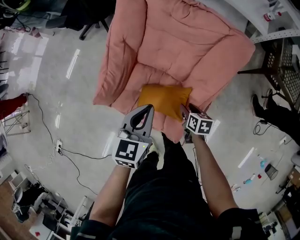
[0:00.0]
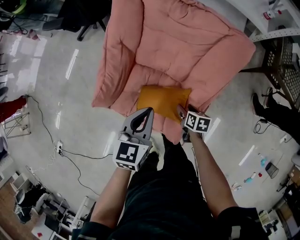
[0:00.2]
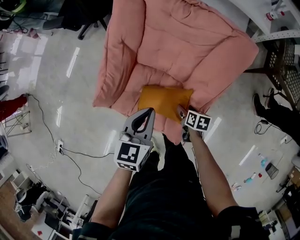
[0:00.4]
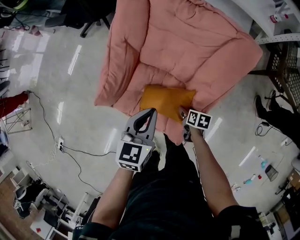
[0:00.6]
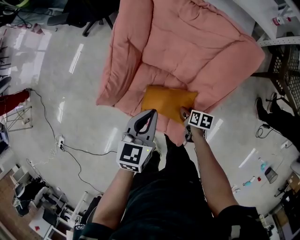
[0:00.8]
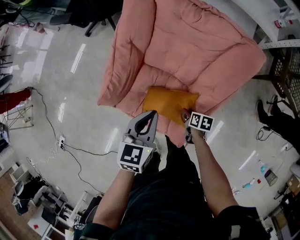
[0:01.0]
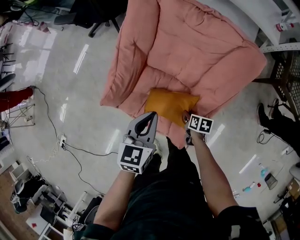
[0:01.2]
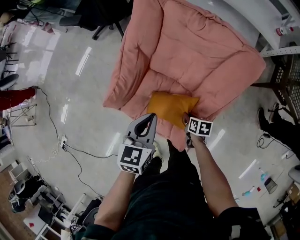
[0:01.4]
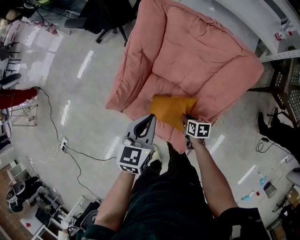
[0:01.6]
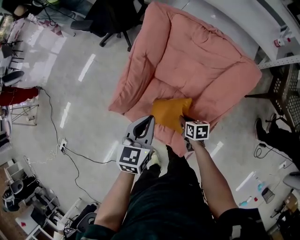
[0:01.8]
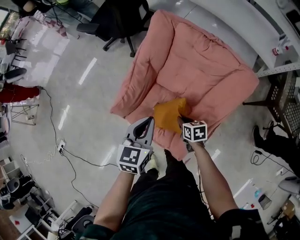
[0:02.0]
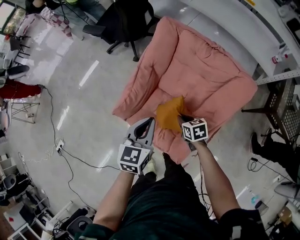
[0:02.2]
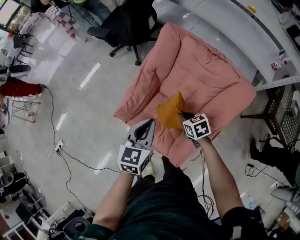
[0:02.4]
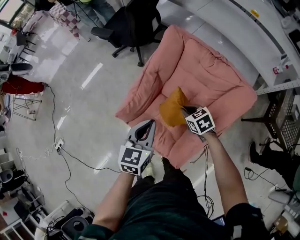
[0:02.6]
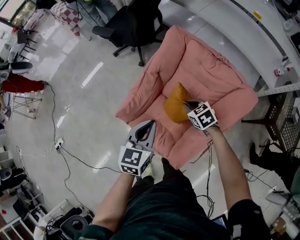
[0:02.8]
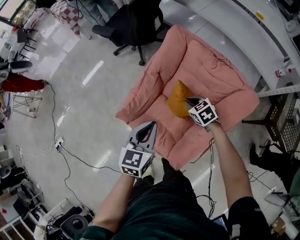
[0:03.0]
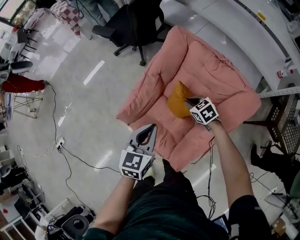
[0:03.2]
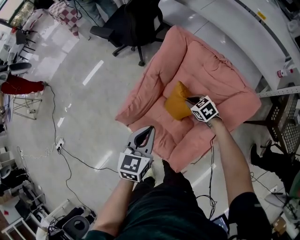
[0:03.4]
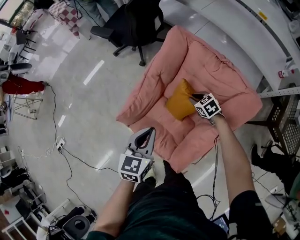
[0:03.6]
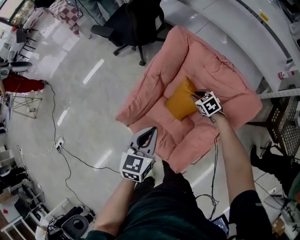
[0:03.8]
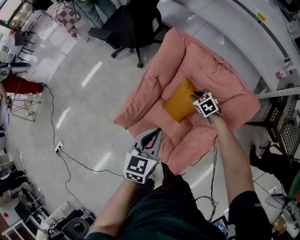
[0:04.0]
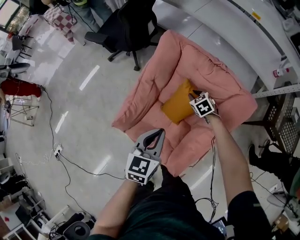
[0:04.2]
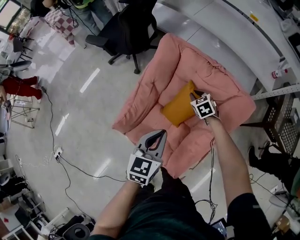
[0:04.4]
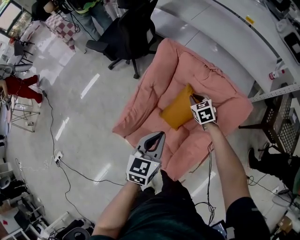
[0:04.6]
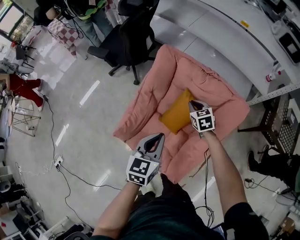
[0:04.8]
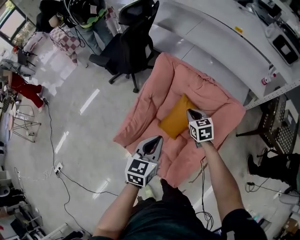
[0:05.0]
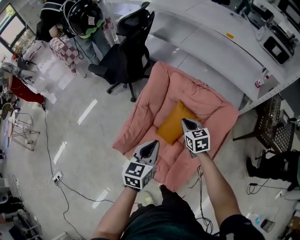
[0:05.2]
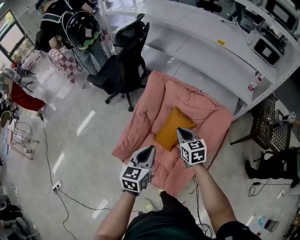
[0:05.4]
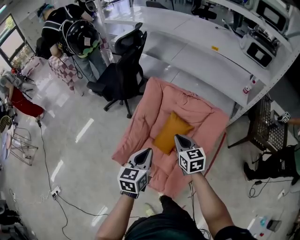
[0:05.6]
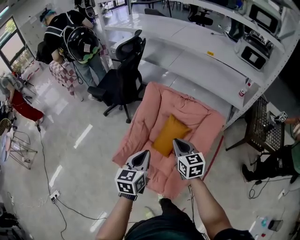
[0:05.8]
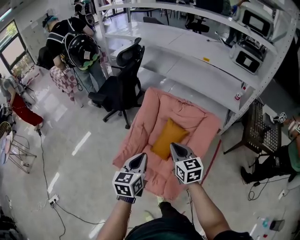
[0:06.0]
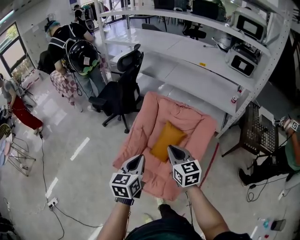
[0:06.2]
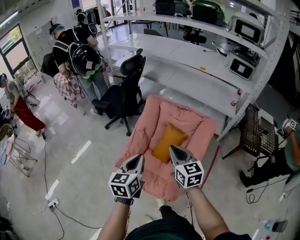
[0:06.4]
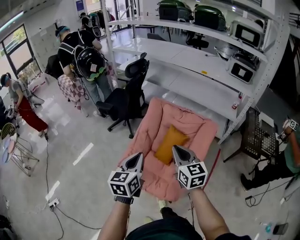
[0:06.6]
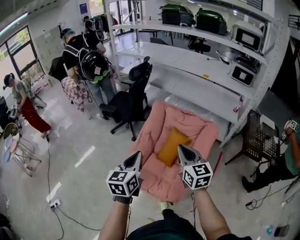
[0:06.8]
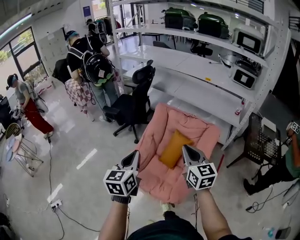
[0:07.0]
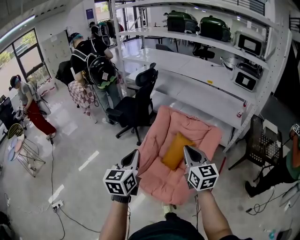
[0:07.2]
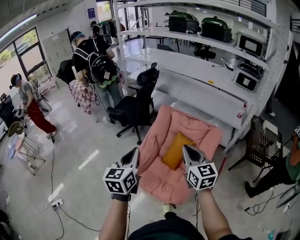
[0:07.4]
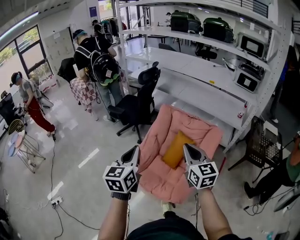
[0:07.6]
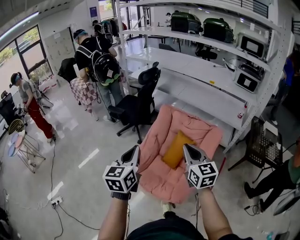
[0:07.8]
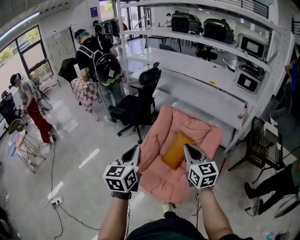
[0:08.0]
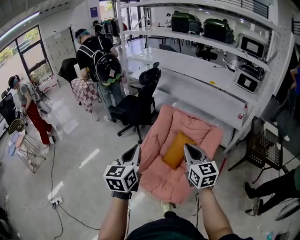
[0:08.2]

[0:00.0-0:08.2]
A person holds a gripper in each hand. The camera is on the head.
0:00.0 to 0:01.6: The right gripper heads to the left, covering about 5 cm, reaches roughly 10 cm downward, then returns, and closes.
0:01.6 to 0:03.2: The left gripper moves upward, some 5 cm. Meanwhile the right gripper goes some 25 cm forward and upward, and twists some 50 degrees counterclockwise, seen from behind.
0:03.2 to 0:05.0: The right gripper is displaced upward and to the right by approximately 10 cm, and rotates roughly 30 degrees, while the left gripper is displaced to the right by roughly 5 cm.
0:05.0 to 0:06.6: The right gripper shifts roughly 40 cm upward and backward, and rotates roughly 30 degrees. Meanwhile the left gripper shifts roughly 25 cm upward, backward and to the left.
0:06.6 to 0:08.2: The right gripper travels upward by approximately 5 cm; the left gripper goes approximately 10 cm upward and to the left.

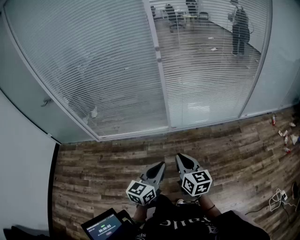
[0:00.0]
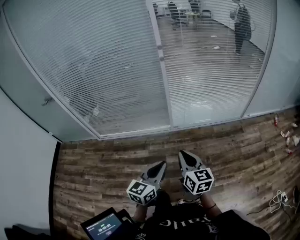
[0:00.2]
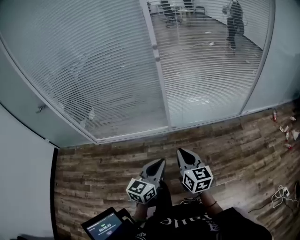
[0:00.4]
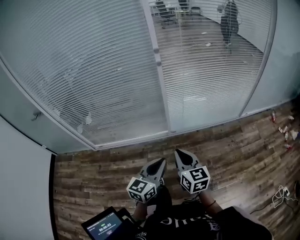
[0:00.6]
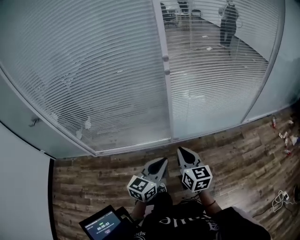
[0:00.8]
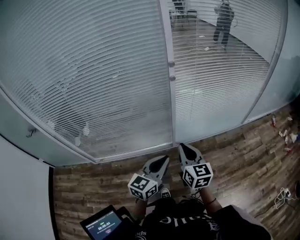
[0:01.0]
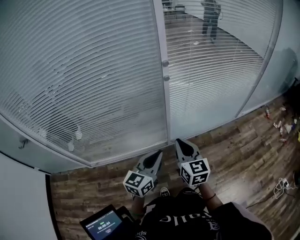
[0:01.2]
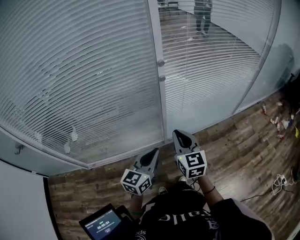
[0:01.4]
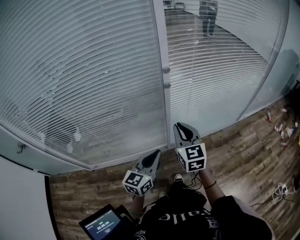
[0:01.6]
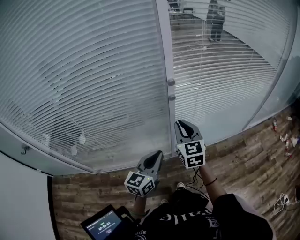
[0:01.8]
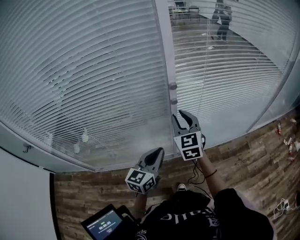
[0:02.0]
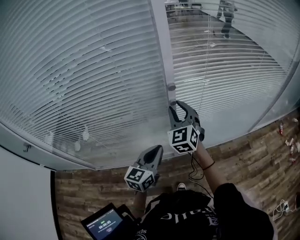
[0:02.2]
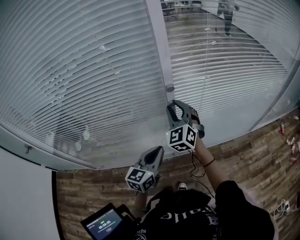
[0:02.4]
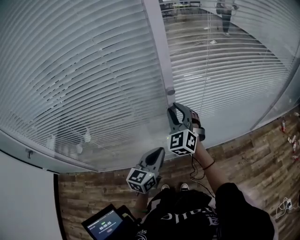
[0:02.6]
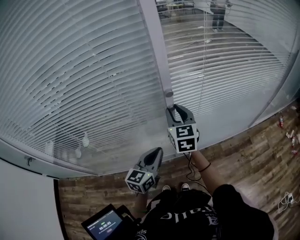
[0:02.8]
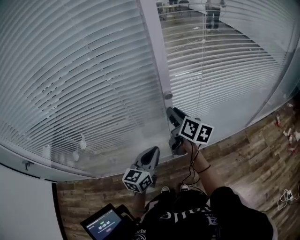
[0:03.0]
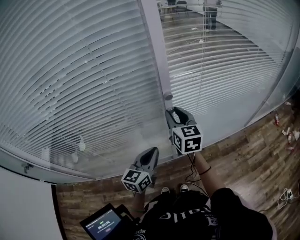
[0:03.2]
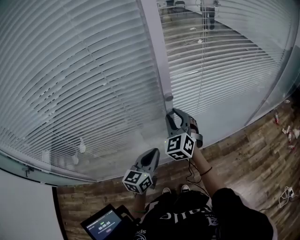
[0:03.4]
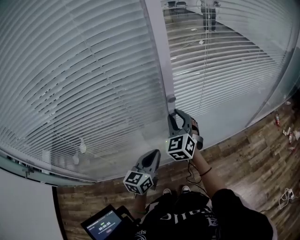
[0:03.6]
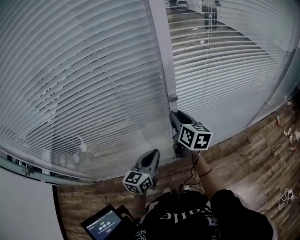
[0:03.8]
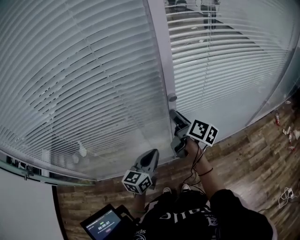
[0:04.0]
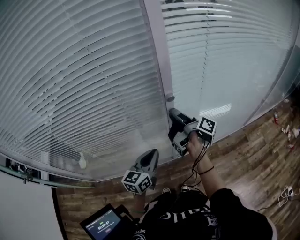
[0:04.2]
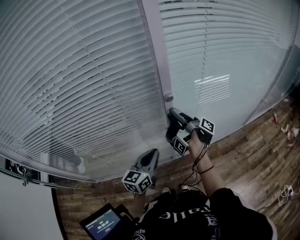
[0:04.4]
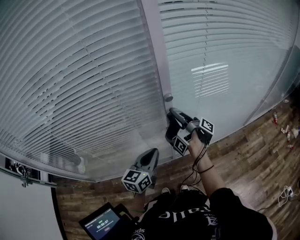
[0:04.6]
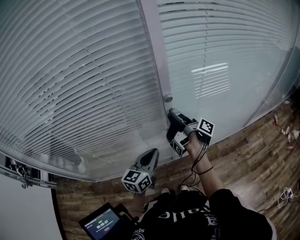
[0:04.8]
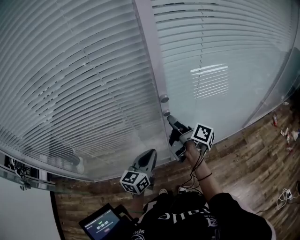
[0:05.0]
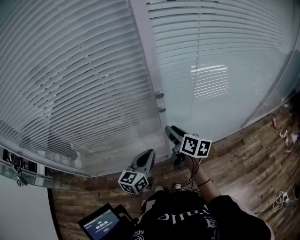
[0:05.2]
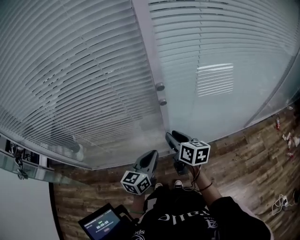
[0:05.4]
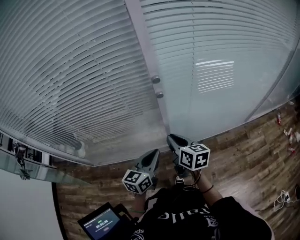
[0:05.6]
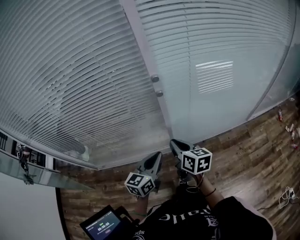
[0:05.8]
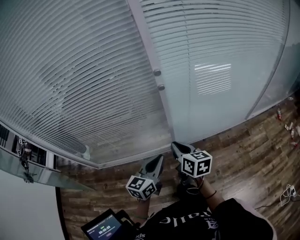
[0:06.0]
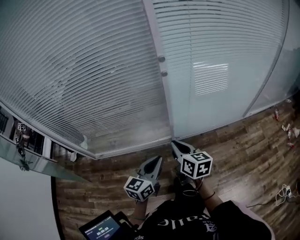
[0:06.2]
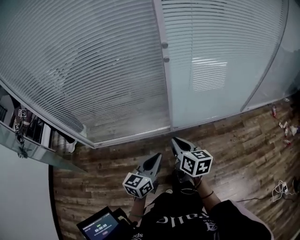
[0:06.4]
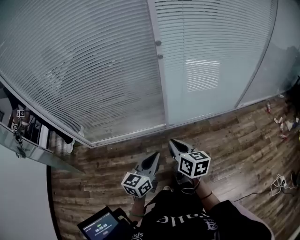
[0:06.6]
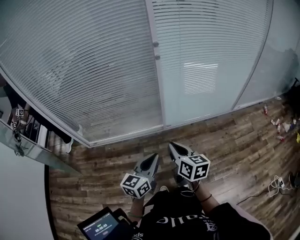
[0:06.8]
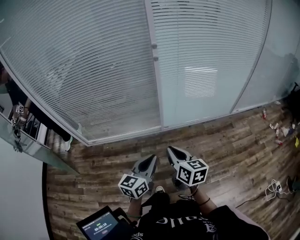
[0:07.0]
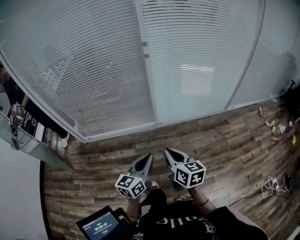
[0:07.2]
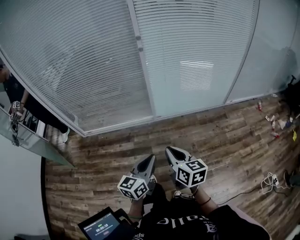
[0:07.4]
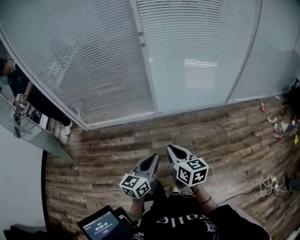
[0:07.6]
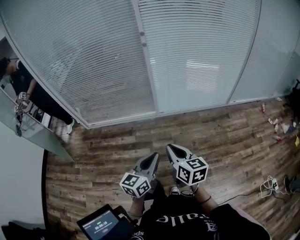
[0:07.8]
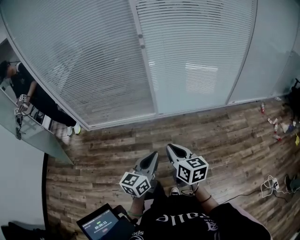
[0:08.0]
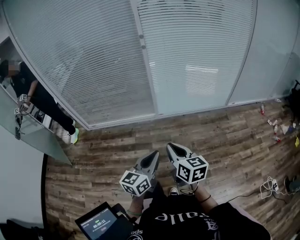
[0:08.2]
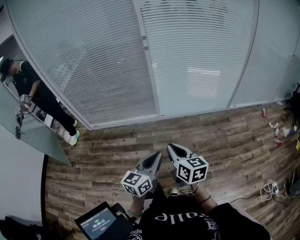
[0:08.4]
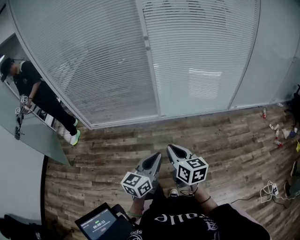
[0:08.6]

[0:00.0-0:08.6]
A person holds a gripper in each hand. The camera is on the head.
0:00.0 to 0:01.4: The pair of grippers is taken forward and to the left, roughly 50 cm. The right gripper turns by about 20 degrees.
0:01.4 to 0:02.8: The grippers both shift forward by some 25 cm. The right gripper opens.
0:02.8 to 0:04.4: The right gripper twists about 110 degrees clockwise, seen from behind.
0:04.4 to 0:05.8: The right gripper moves backward, about 25 cm, rolls counterclockwise, seen from behind, by roughly 80 degrees, and closes up, while the left gripper heads backward and to the right, covering some 15 cm.
0:05.8 to 0:07.2: The two grippers travel together, backward, some 50 cm.
0:07.2 to 0:08.6: The grippers both shift backward and to the right by some 20 cm.

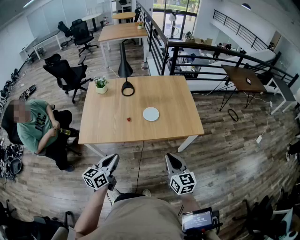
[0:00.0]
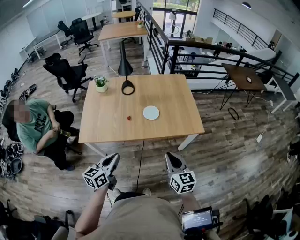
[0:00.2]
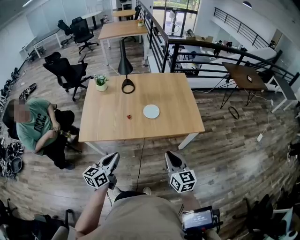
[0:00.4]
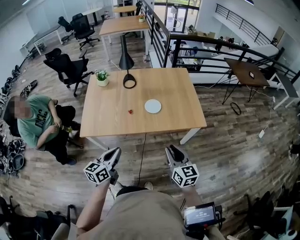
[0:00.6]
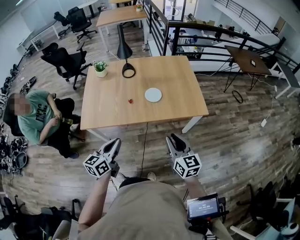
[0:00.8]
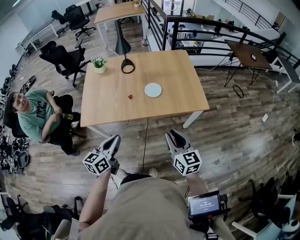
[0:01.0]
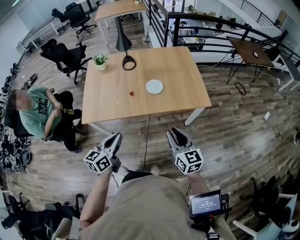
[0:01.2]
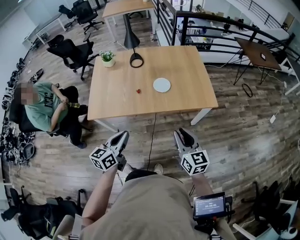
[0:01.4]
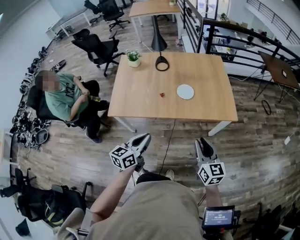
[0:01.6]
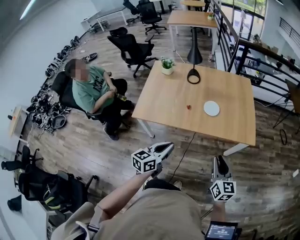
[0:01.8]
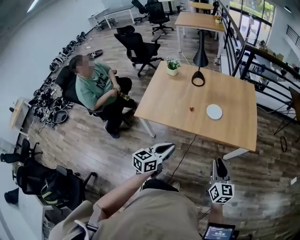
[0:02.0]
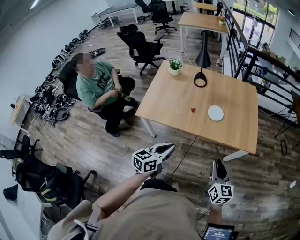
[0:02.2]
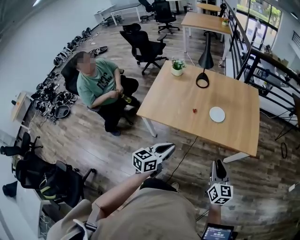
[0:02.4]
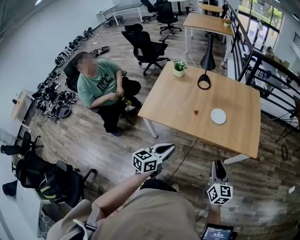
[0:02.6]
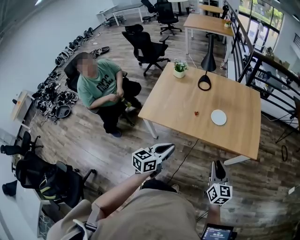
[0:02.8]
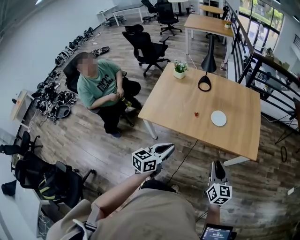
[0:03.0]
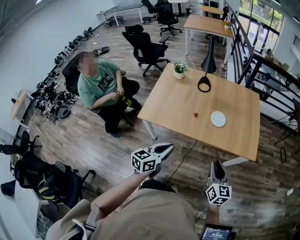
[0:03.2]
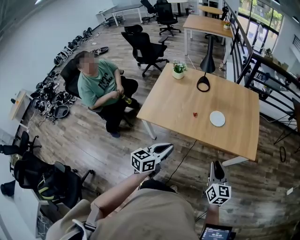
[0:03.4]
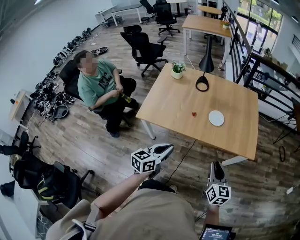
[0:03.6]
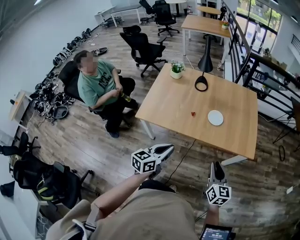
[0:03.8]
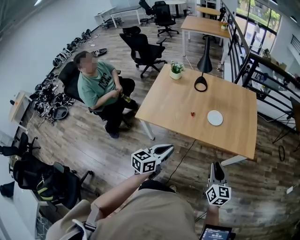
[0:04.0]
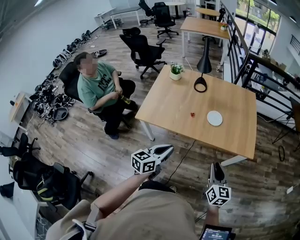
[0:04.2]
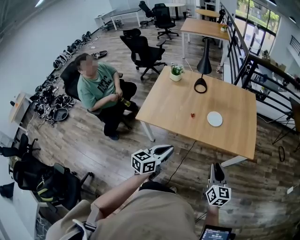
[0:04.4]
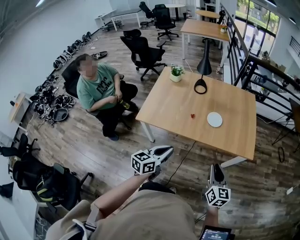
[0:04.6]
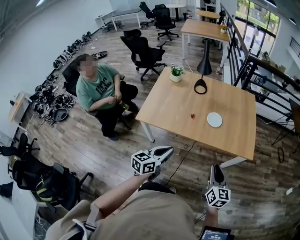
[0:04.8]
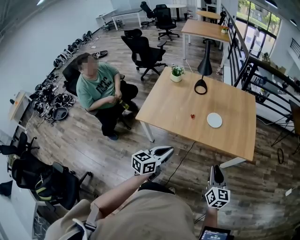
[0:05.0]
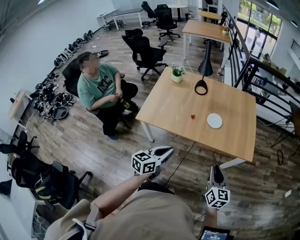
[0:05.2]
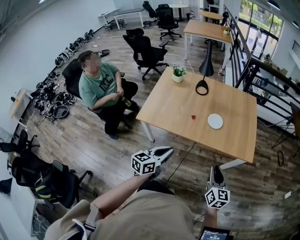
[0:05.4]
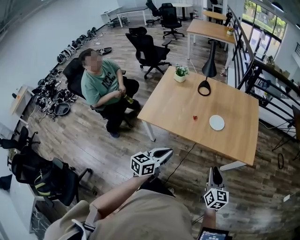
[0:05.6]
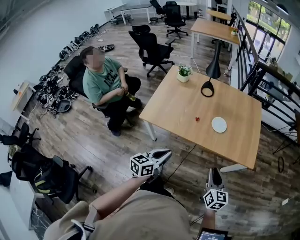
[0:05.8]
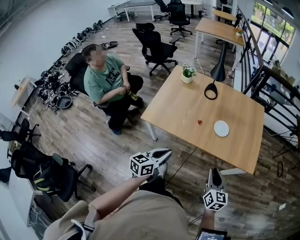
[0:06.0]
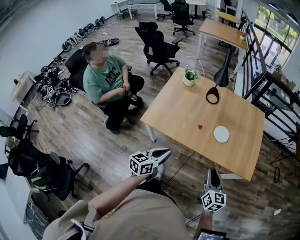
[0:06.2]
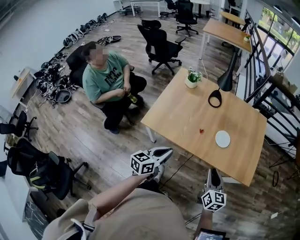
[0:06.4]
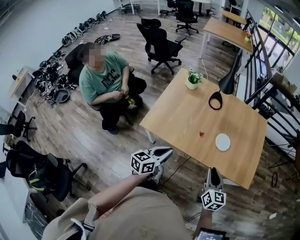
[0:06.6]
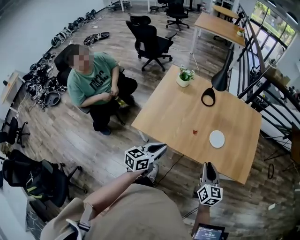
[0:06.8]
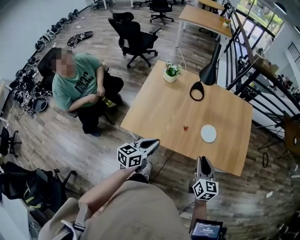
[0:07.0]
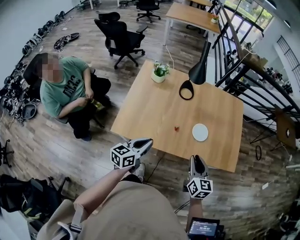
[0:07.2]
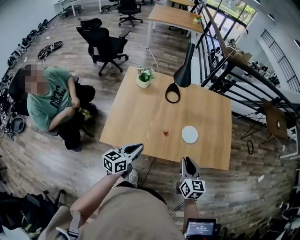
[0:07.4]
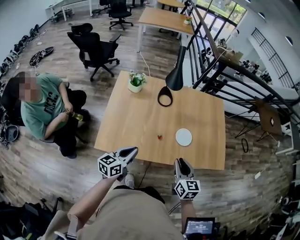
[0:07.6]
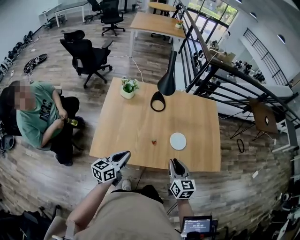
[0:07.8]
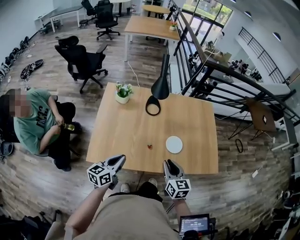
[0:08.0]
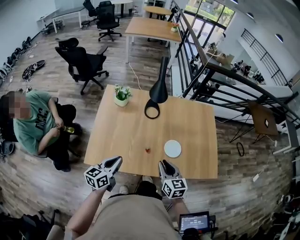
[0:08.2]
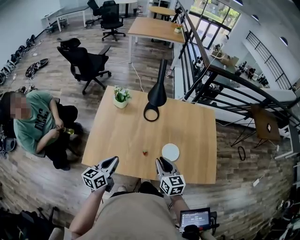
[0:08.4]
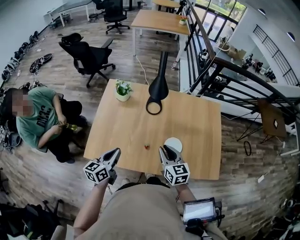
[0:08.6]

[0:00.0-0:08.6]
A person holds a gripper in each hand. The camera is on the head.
0:00.0 to 0:01.4: Neither gripper changes place.
0:01.4 to 0:05.8: The grippers stay close to where they were, moving slightly.
0:05.8 to 0:07.2: The grippers both shift forward and to the left by roughly 25 cm.
0:07.2 to 0:08.6: The right gripper heads forward, covering some 15 cm. Meanwhile the left gripper heads forward, covering some 10 cm.
